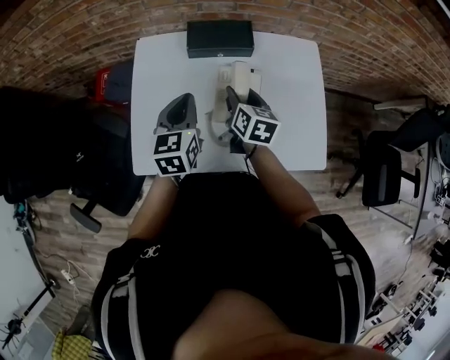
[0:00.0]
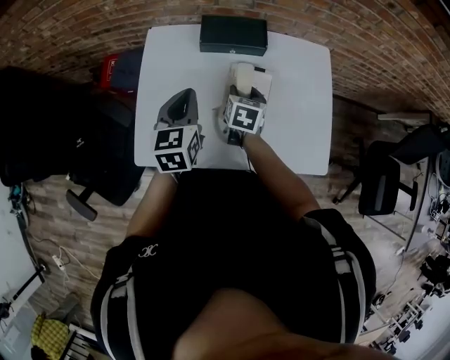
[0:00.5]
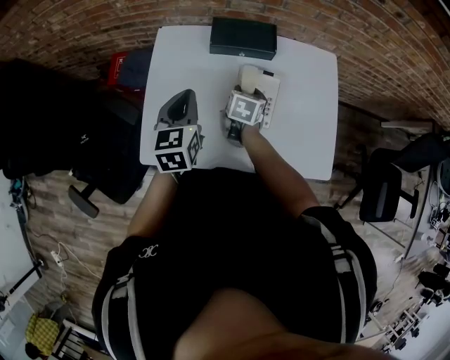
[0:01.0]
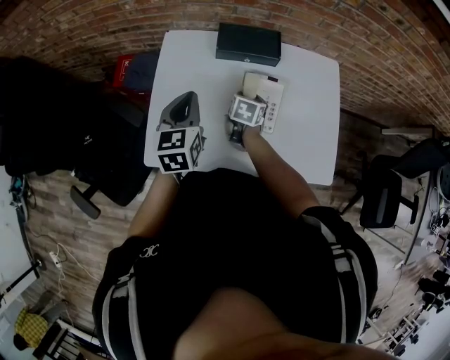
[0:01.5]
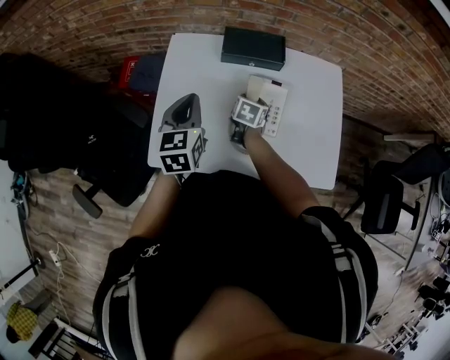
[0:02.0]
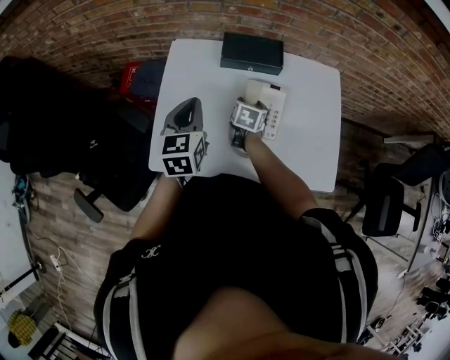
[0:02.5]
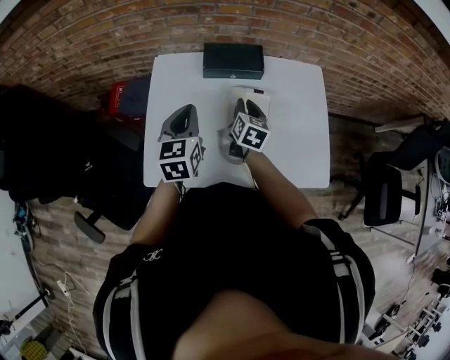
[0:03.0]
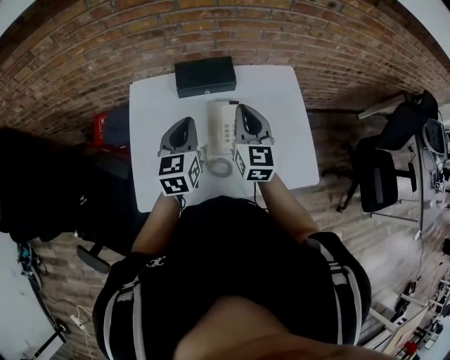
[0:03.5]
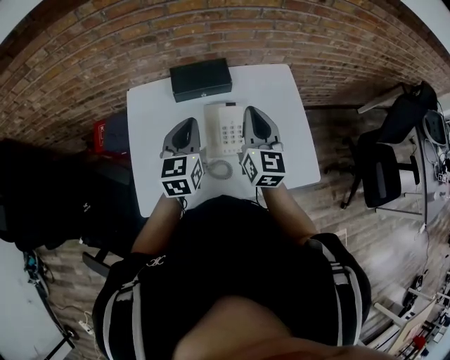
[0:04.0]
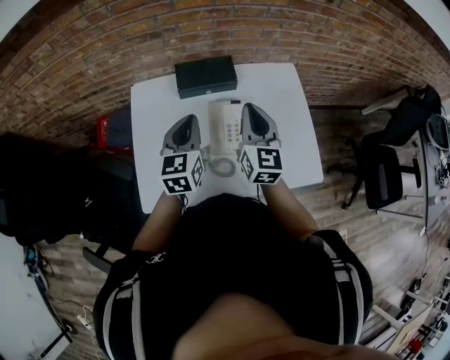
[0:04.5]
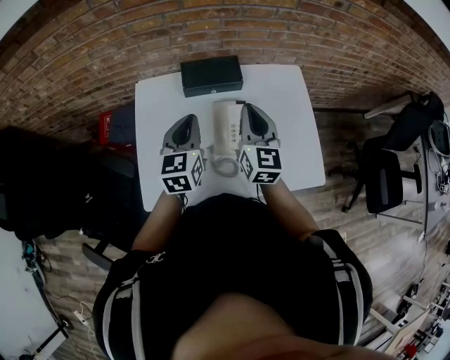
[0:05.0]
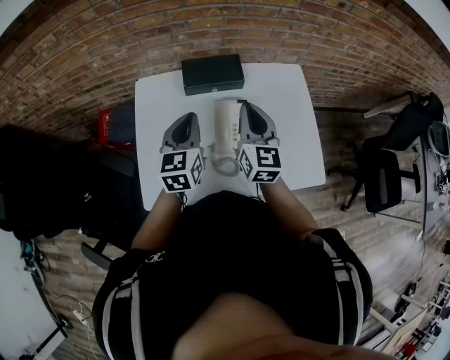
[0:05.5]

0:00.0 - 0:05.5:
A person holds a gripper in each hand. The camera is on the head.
0:00.0 - 0:02.0: The left gripper shifts some 5 cm to the left; the right gripper travels downward by roughly 10 cm, and rotates some 20 degrees.
0:02.0 - 0:03.5: The right gripper moves upward, roughly 25 cm, angles its fingers upward, by roughly 40 degrees, and closes up. Meanwhile the left gripper heads to the right, covering approximately 10 cm.
0:03.5 - 0:05.5: The grippers move only a little.

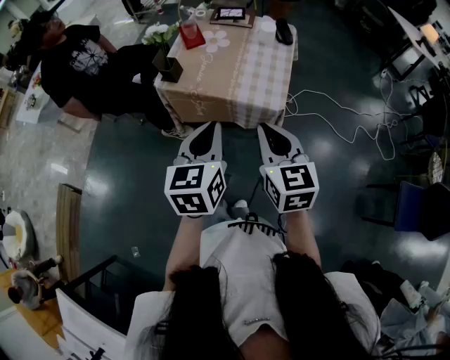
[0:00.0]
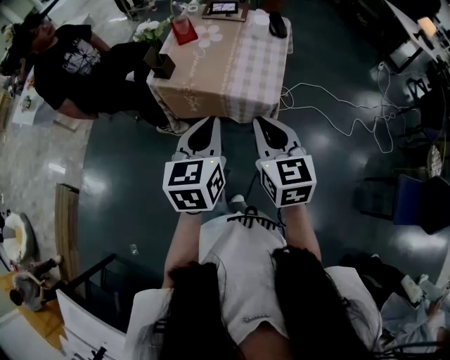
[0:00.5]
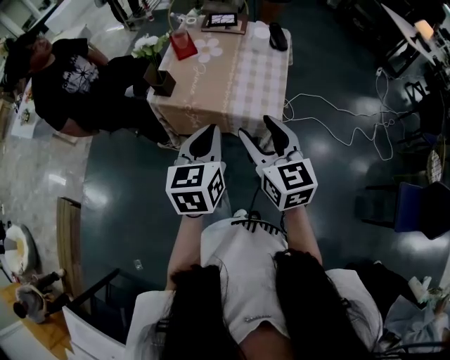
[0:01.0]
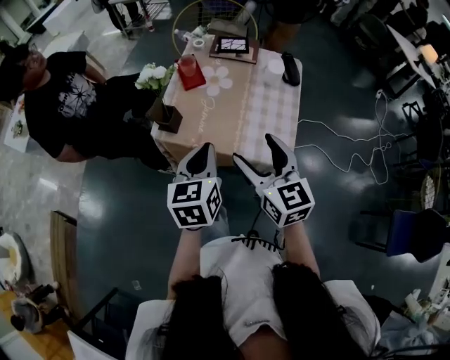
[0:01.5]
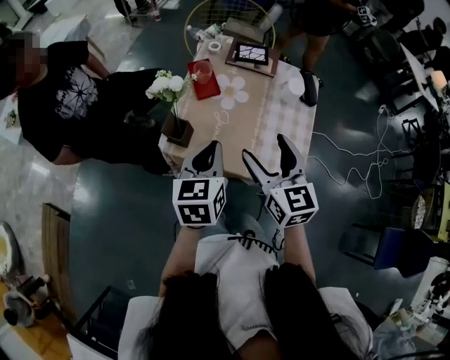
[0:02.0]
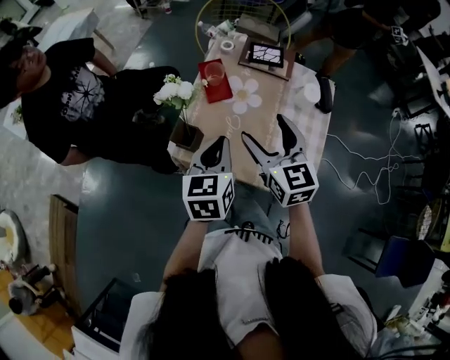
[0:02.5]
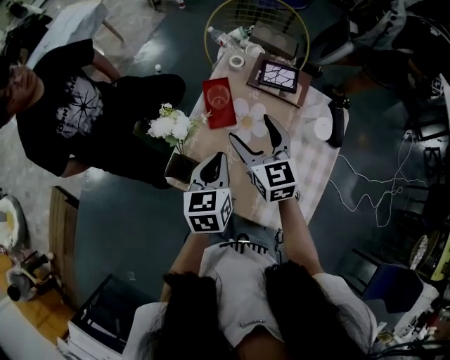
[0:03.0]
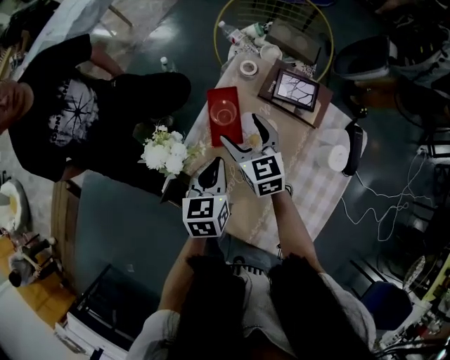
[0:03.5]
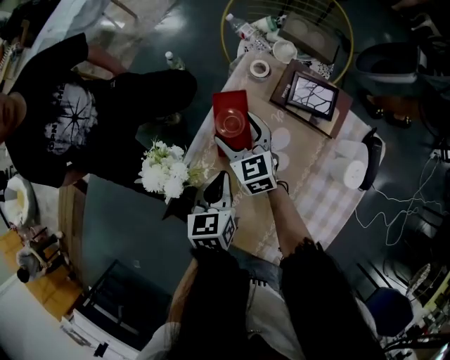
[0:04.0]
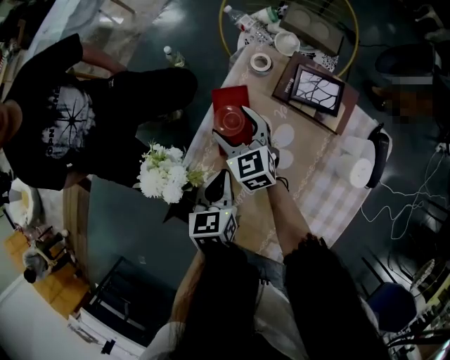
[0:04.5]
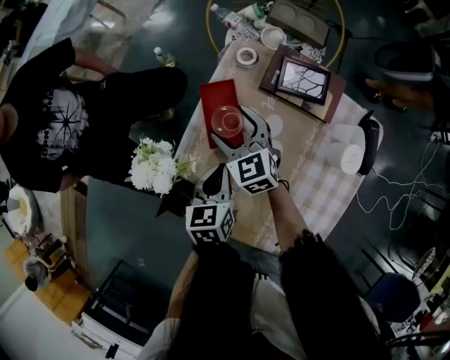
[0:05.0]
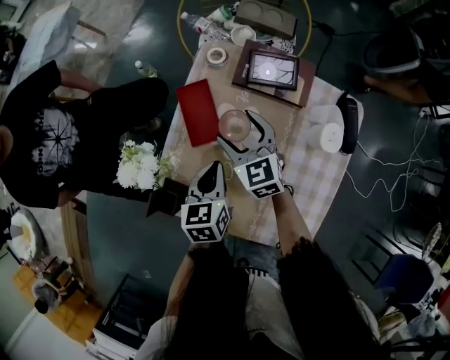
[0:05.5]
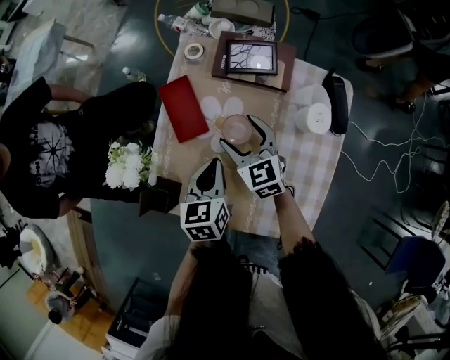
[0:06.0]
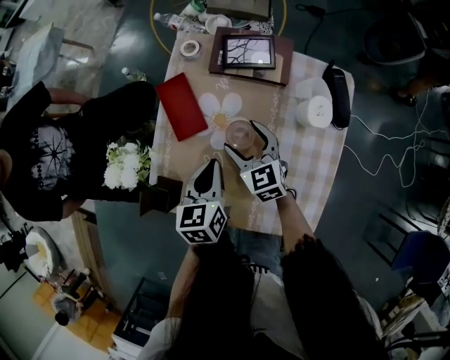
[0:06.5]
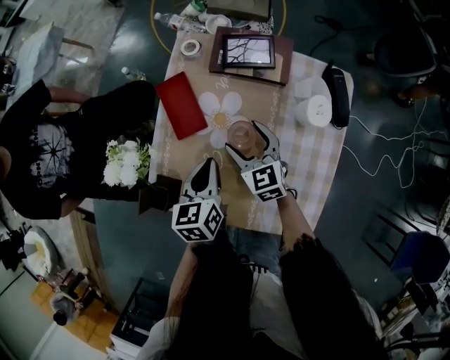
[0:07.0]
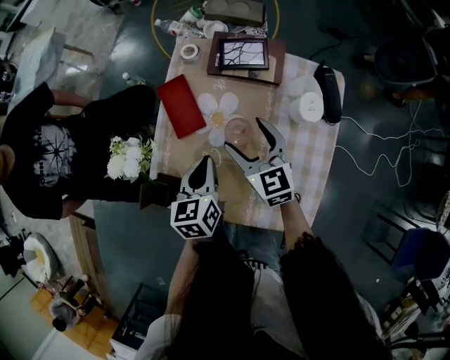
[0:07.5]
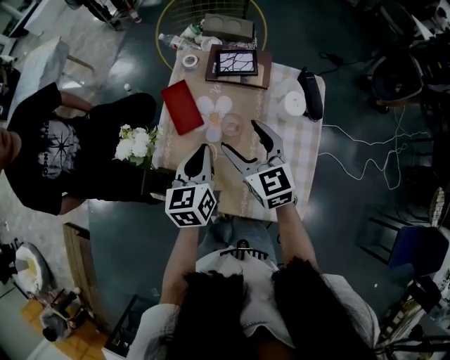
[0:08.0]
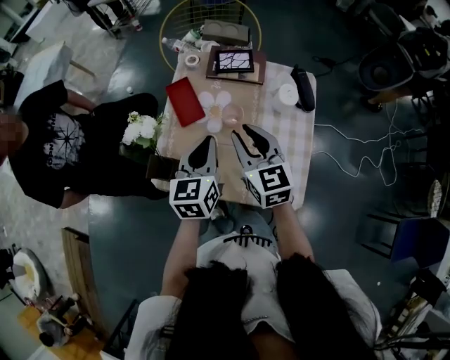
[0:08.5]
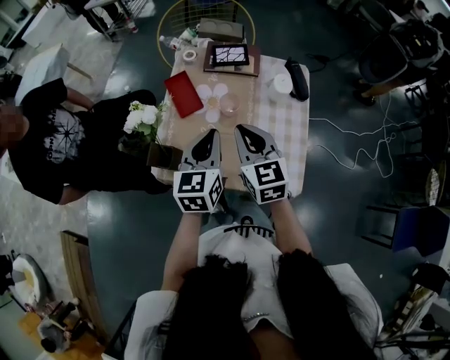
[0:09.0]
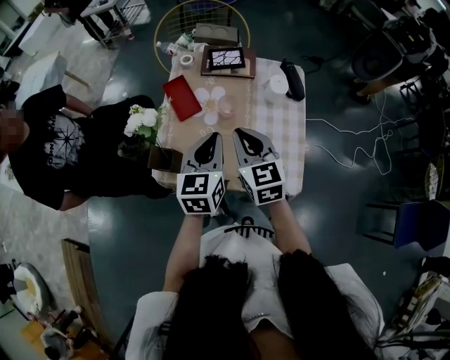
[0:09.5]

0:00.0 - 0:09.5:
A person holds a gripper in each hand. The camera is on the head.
0:00.0 - 0:02.0: Both grippers move forward, roughly 30 cm. The right gripper opens.
0:02.0 - 0:04.0: The left gripper is displaced forward and downward by approximately 30 cm, and changes its angle by about 20 degrees. The right gripper heads forward and downward, covering some 40 cm, and turns by about 30 degrees.
0:04.0 - 0:05.5: The right gripper moves to the right and backward, roughly 10 cm; the left gripper heads to the right, covering some 5 cm.
0:05.5 - 0:07.5: The right gripper travels backward and to the right by about 10 cm.
0:07.5 - 0:09.5: The left gripper heads upward and backward, covering approximately 15 cm, and rotates some 20 degrees; the right gripper moves backward and upward, about 20 cm, and closes its fingers.

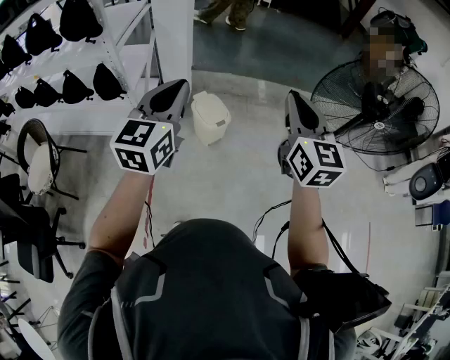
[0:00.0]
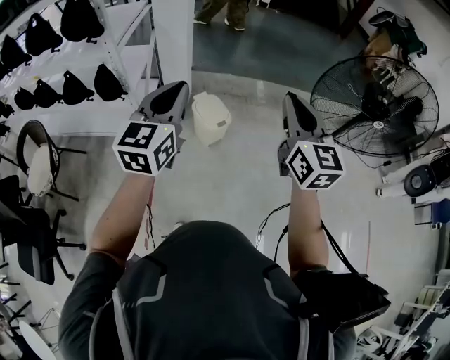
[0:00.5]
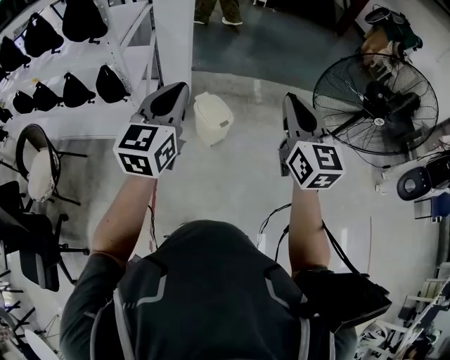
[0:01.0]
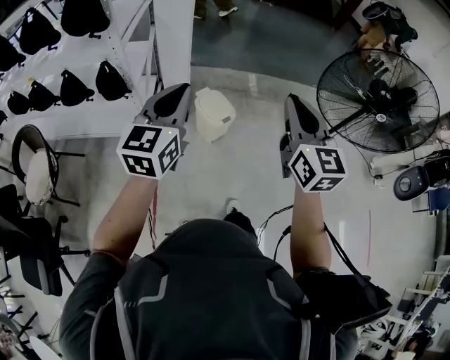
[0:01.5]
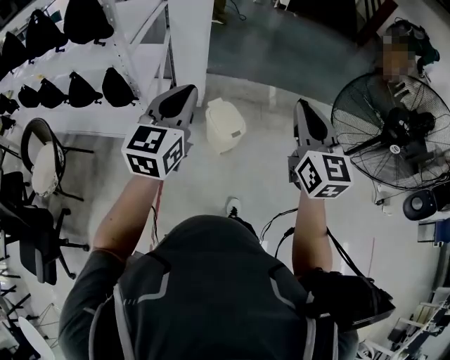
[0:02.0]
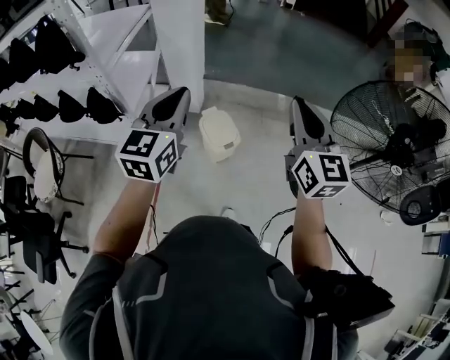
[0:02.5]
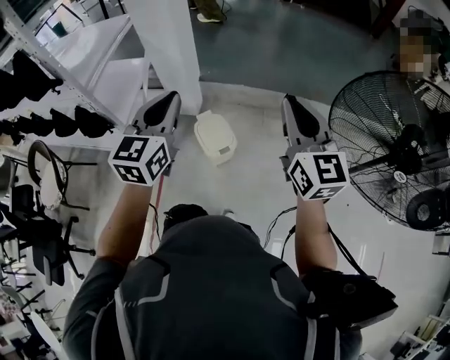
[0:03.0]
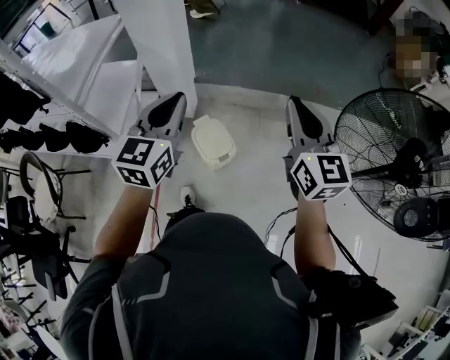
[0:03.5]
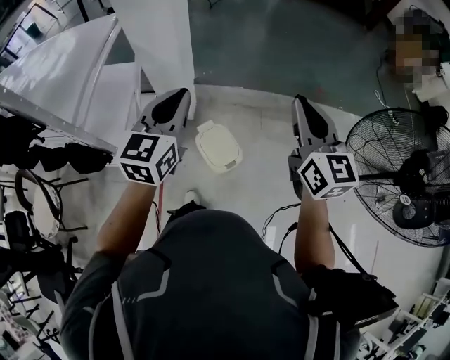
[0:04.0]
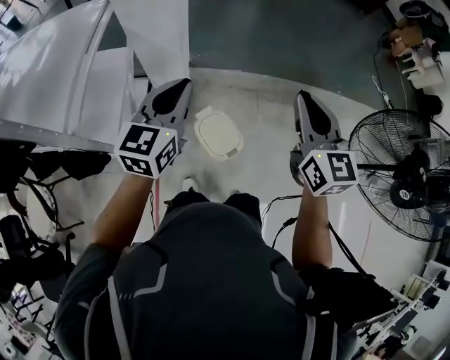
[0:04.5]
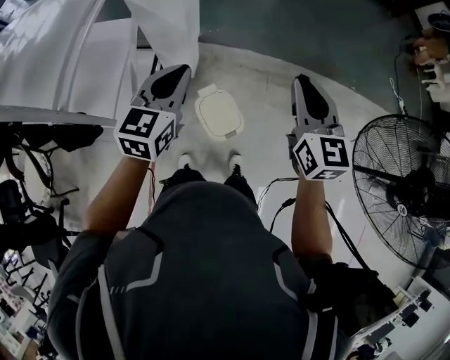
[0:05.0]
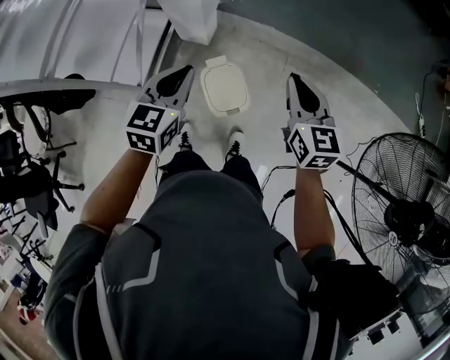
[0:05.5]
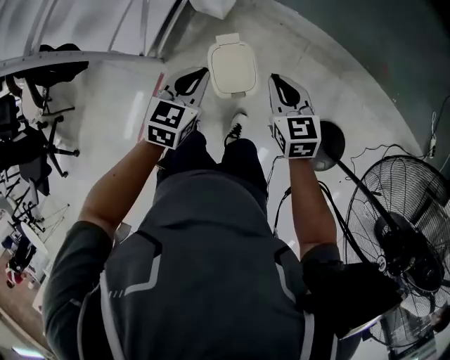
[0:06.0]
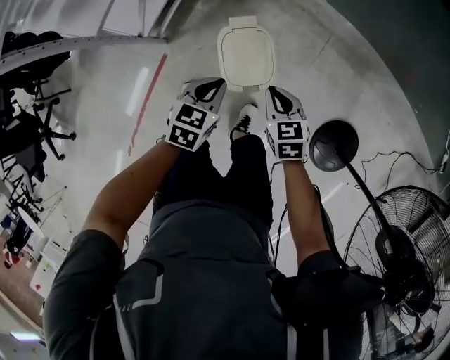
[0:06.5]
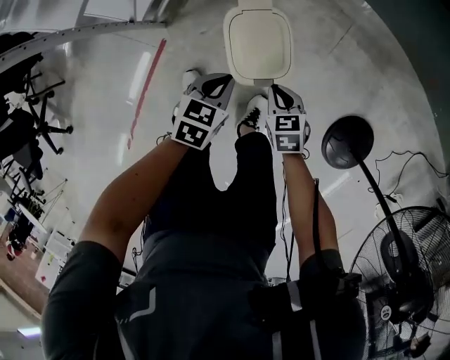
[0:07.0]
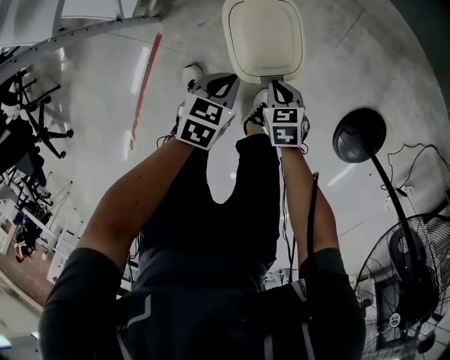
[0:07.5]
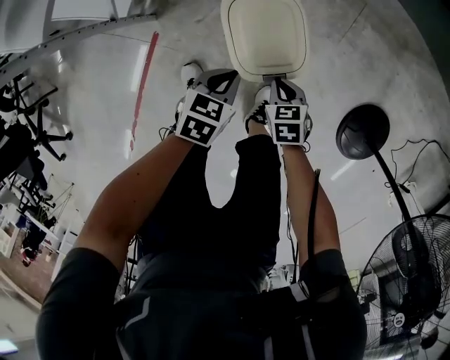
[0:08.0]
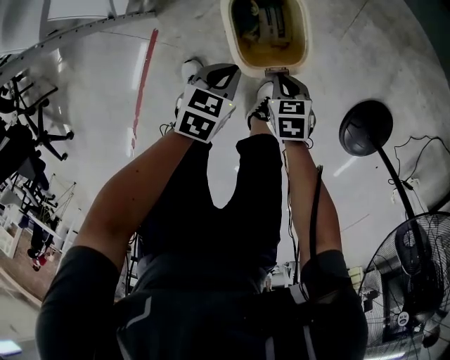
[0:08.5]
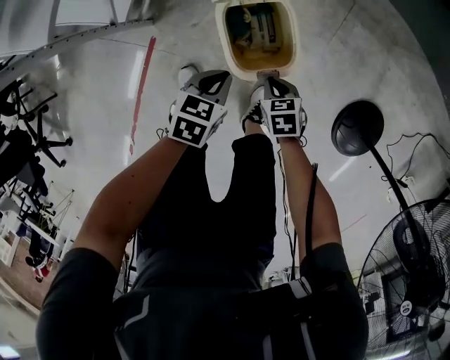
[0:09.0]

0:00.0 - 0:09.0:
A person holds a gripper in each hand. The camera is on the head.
0:00.0 - 0:02.0: The two grippers go roughly 10 cm forward and to the left.
0:02.0 - 0:04.5: Both grippers travel together forward, some 40 cm.
0:04.5 - 0:07.0: The grippers both shift downward by roughly 60 cm. The right gripper points its fingers approximately 50 degrees further downward. Meanwhile the left gripper tips its fingers downward by about 40 degrees.
0:07.0 - 0:09.0: The two grippers go approximately 10 cm downward.

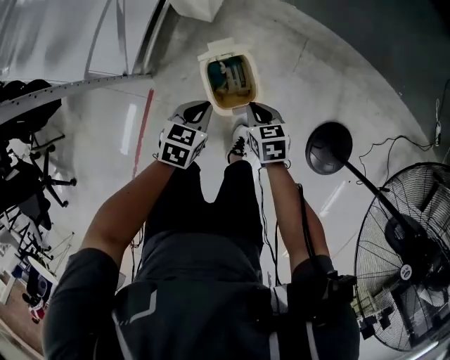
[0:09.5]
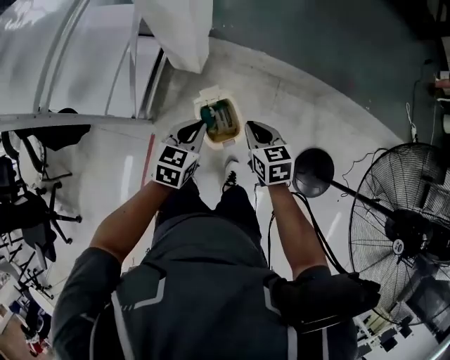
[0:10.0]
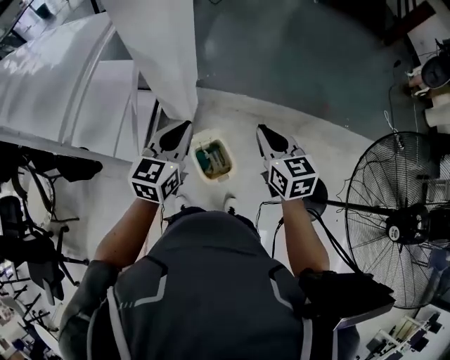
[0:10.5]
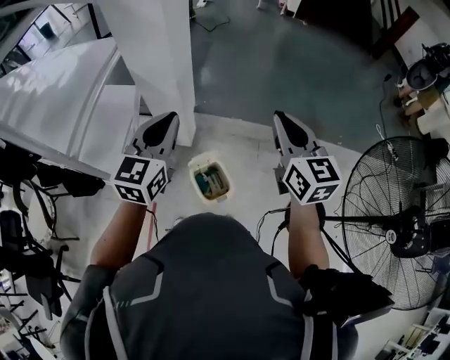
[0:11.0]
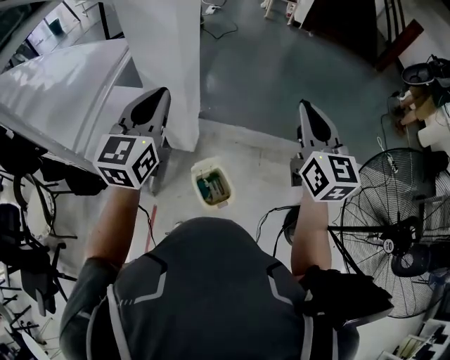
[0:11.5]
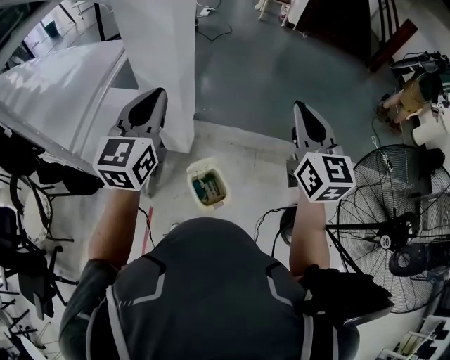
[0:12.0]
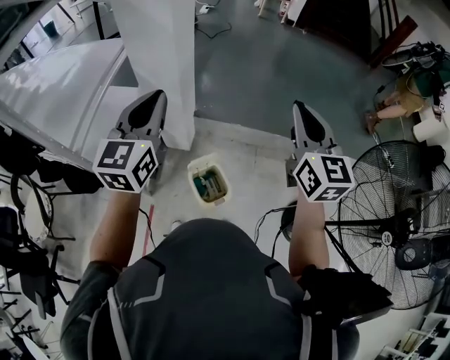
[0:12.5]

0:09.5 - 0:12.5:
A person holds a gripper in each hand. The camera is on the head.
0:09.5 - 0:11.0: The grippers both shift upward by about 60 cm. The left gripper tilts its fingers some 40 degrees upward. Meanwhile the right gripper tips its fingers upward by about 50 degrees.
0:11.0 - 0:12.5: Both grippers travel together upward, about 5 cm.
